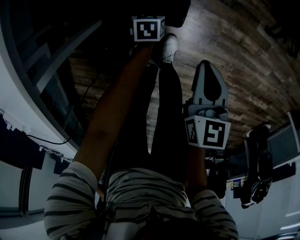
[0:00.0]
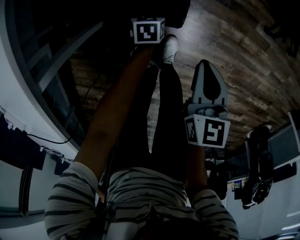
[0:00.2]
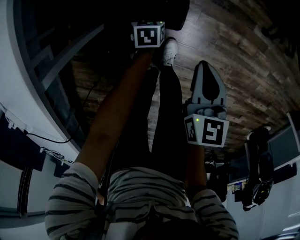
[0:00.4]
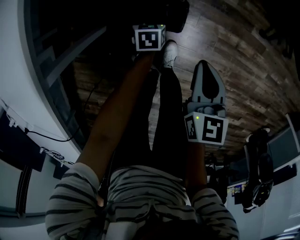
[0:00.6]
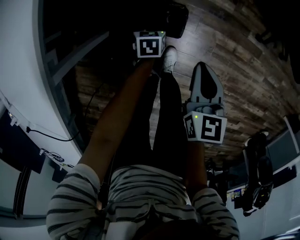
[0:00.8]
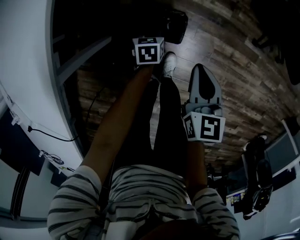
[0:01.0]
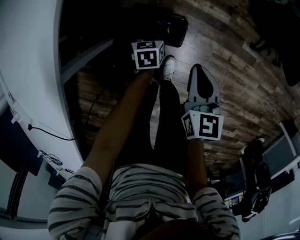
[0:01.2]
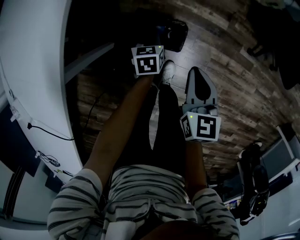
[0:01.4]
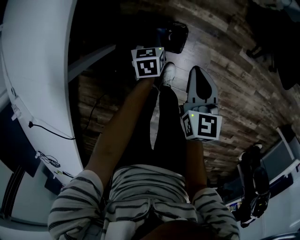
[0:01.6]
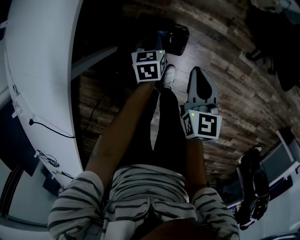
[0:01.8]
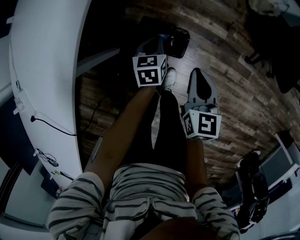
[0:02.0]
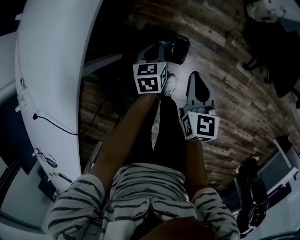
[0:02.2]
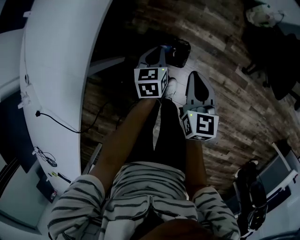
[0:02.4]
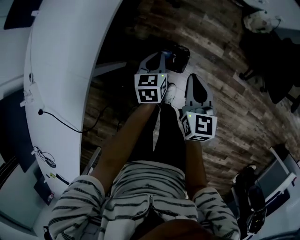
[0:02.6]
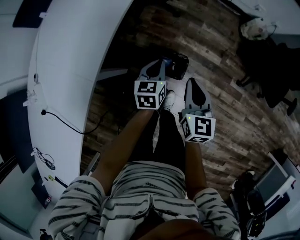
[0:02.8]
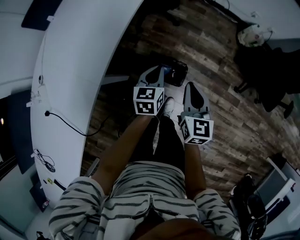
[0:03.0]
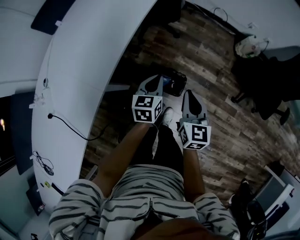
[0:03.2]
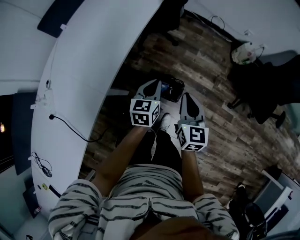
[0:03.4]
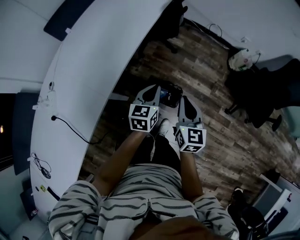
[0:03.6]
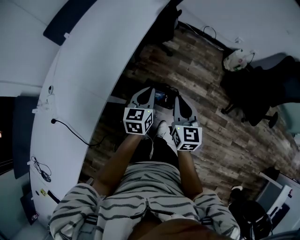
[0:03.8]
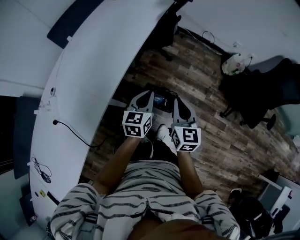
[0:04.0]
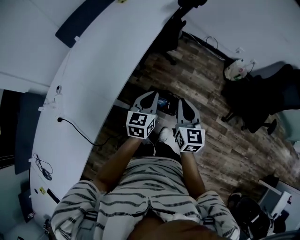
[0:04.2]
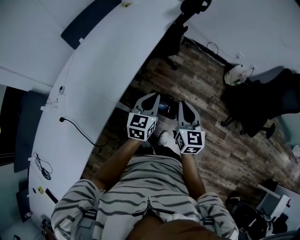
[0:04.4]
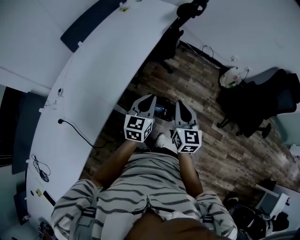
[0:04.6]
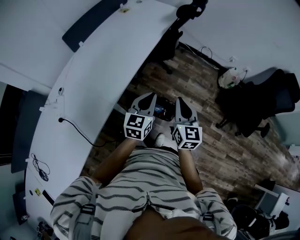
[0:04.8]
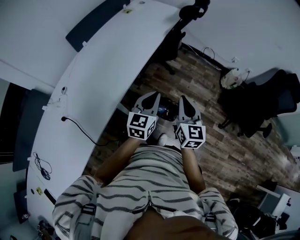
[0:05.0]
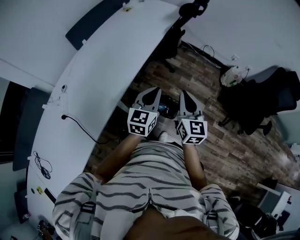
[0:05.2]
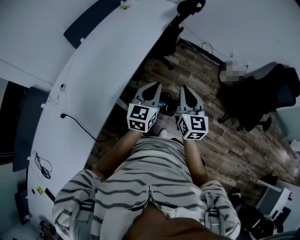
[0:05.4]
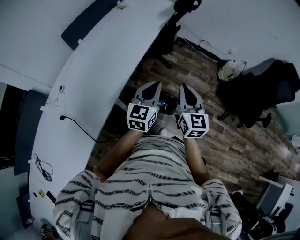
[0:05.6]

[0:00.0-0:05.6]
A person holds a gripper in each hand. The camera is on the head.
0:00.0 to 0:01.4: The left gripper shifts some 20 cm upward, and closes. Meanwhile the right gripper shifts approximately 10 cm upward.
0:01.4 to 0:02.8: The right gripper goes some 10 cm upward. Meanwhile the left gripper heads upward, covering roughly 20 cm.
0:02.8 to 0:04.2: The grippers both shift upward by roughly 20 cm.
0:04.2 to 0:05.6: The two grippers go some 10 cm upward.

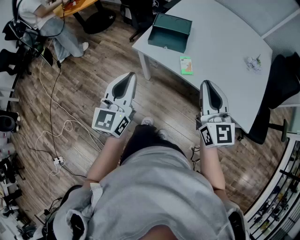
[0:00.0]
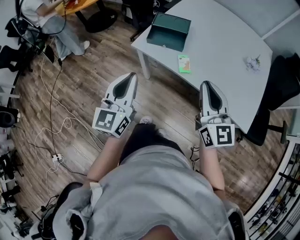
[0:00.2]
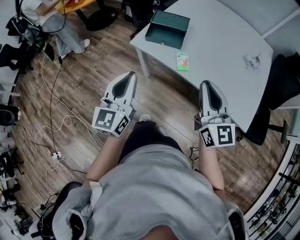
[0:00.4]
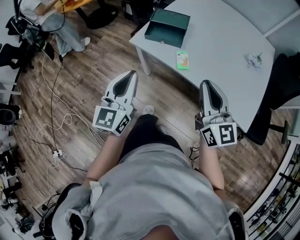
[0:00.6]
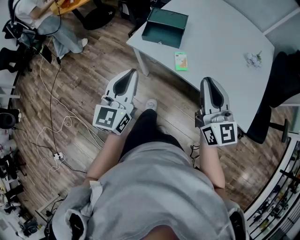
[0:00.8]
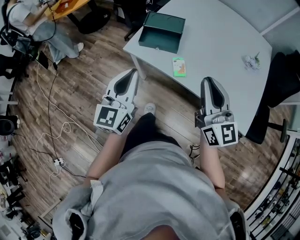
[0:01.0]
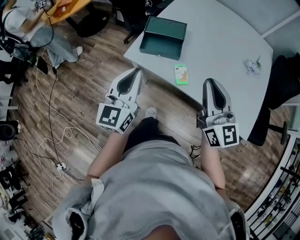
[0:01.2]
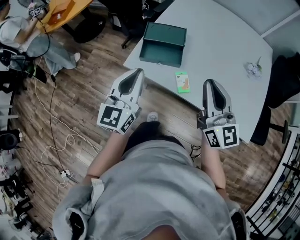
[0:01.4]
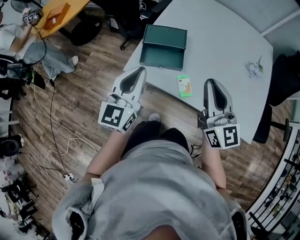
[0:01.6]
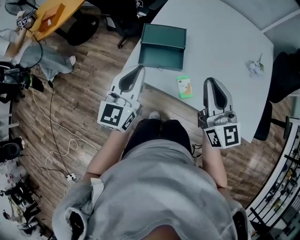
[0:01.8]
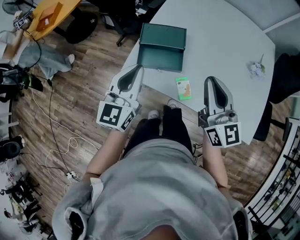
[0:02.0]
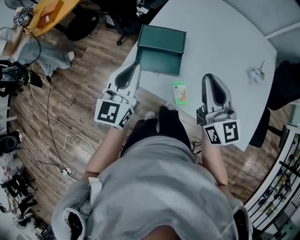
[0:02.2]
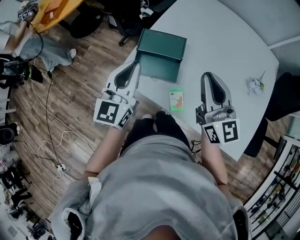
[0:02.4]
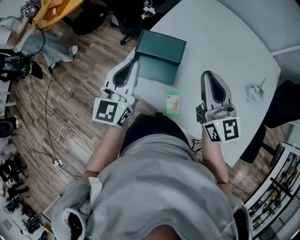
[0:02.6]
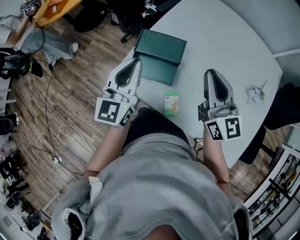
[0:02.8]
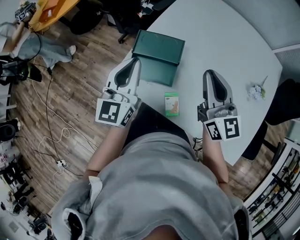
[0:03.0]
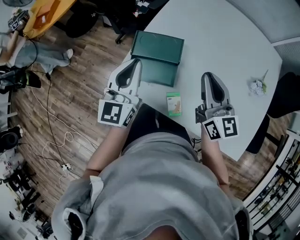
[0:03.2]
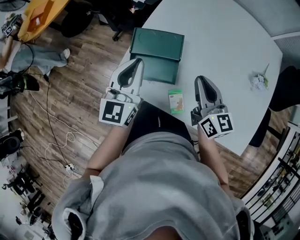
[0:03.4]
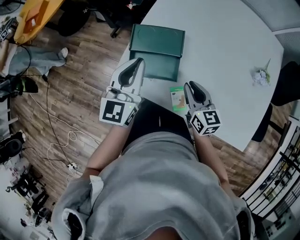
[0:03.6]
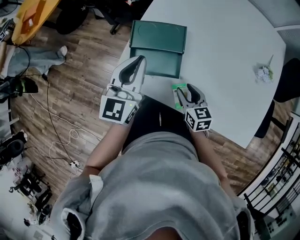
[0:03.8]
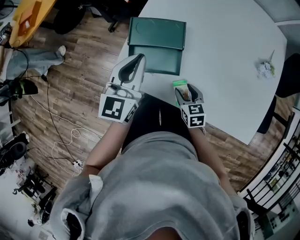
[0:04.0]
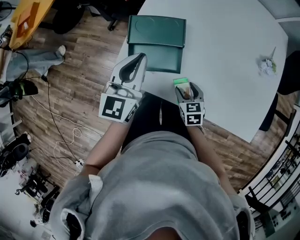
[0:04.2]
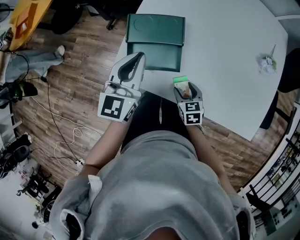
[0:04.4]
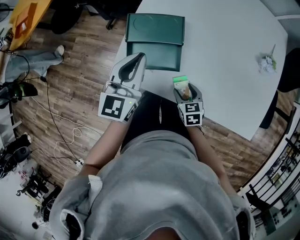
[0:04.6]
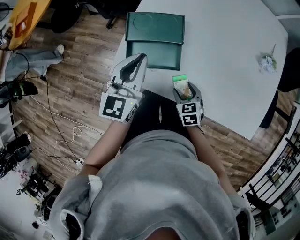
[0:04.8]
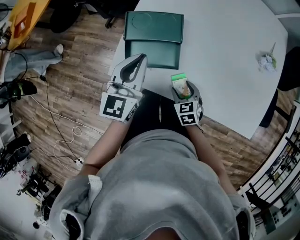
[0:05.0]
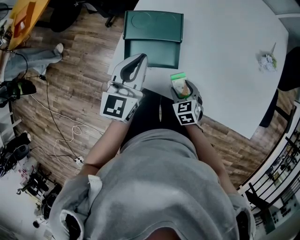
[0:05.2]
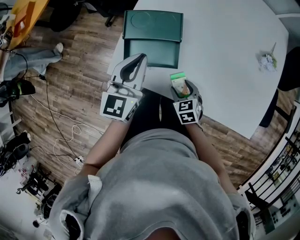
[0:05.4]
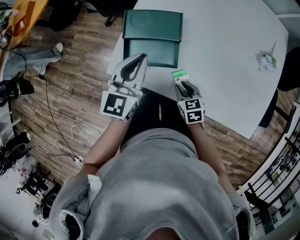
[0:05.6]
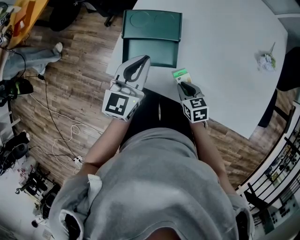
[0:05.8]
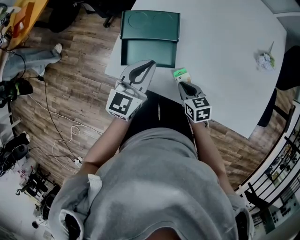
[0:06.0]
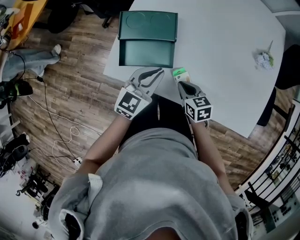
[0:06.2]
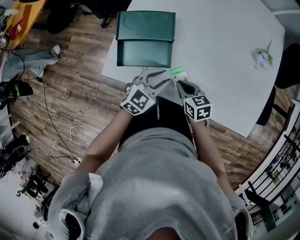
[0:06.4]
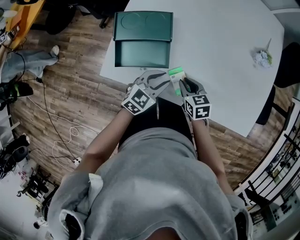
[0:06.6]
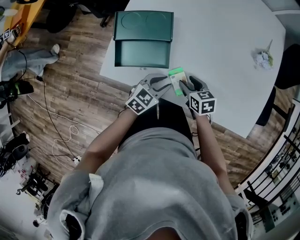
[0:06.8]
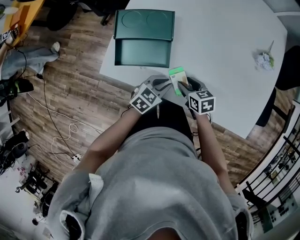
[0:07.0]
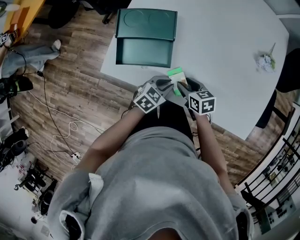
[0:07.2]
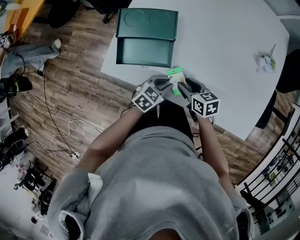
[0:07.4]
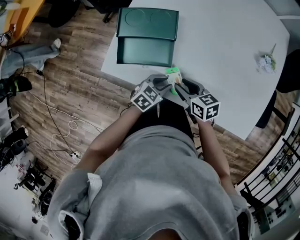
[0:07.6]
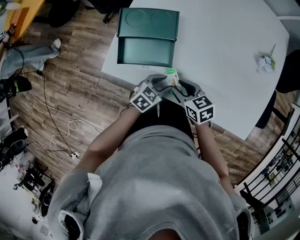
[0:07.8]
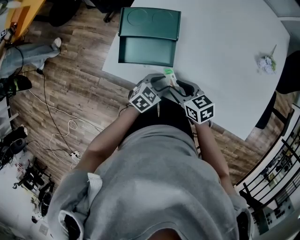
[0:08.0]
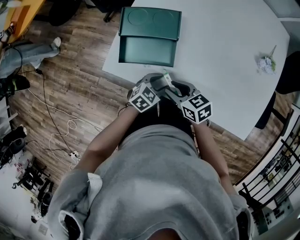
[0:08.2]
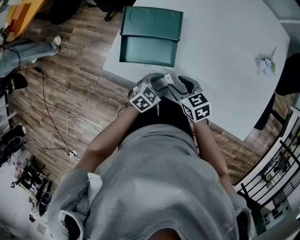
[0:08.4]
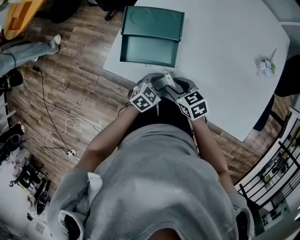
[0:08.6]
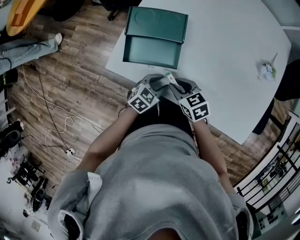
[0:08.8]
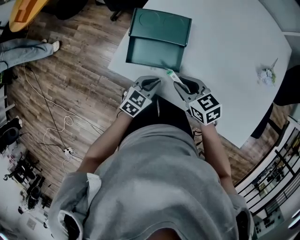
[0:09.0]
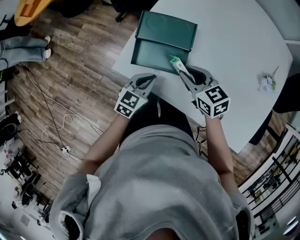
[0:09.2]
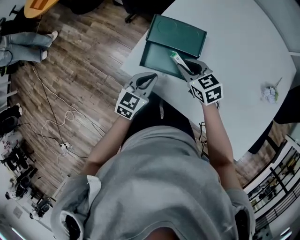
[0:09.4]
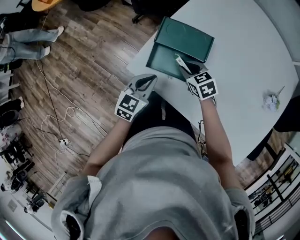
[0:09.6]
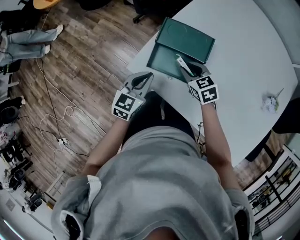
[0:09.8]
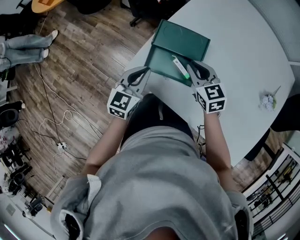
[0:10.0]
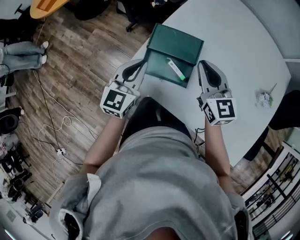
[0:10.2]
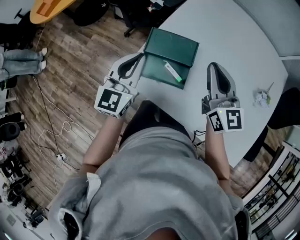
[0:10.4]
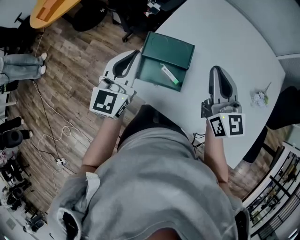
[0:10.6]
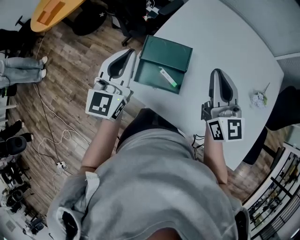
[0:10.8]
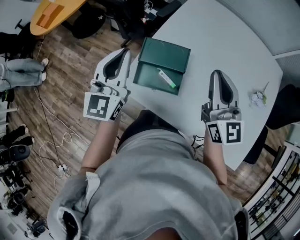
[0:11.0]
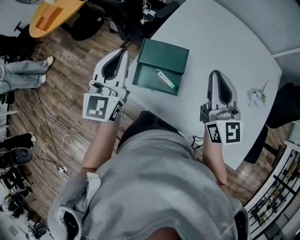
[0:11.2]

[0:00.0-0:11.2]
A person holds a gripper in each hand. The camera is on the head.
0:00.0 to 0:01.6: Both grippers move forward, some 20 cm.
0:01.6 to 0:03.2: The grippers both shift forward by roughly 20 cm.
0:03.2 to 0:04.8: The left gripper goes approximately 10 cm downward. The right gripper moves downward, roughly 30 cm, points its fingers approximately 50 degrees further downward, and opens.
0:04.8 to 0:06.4: The right gripper closes its fingers. Meanwhile the left gripper moves downward, to the right and backward, approximately 20 cm, changes its angle by about 40 degrees, and opens up.
0:06.4 to 0:08.0: The left gripper goes some 10 cm downward, and turns by some 20 degrees. The right gripper opens.
0:08.0 to 0:09.6: The left gripper shifts by some 20 cm, turns by approximately 40 degrees, and closes up. The right gripper goes upward and returns, approximately 10 cm each way, and changes its angle by some 30 degrees.
0:09.6 to 0:11.2: The right gripper heads upward and to the right, covering about 35 cm, and angles its fingers upward, by roughly 50 degrees. The left gripper heads upward, covering roughly 30 cm, and points its fingers roughly 30 degrees further upward.

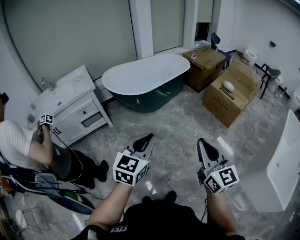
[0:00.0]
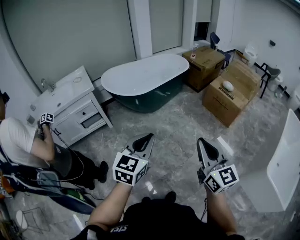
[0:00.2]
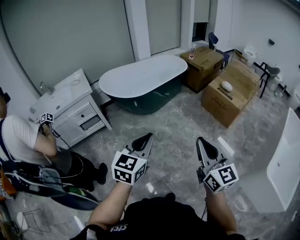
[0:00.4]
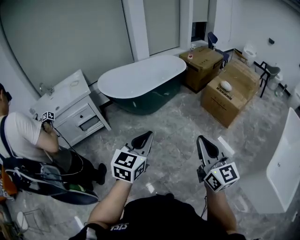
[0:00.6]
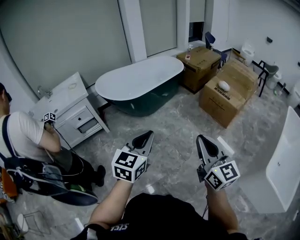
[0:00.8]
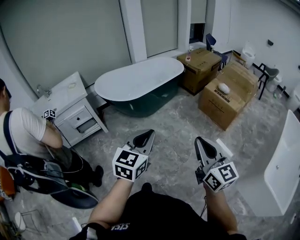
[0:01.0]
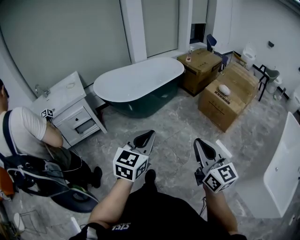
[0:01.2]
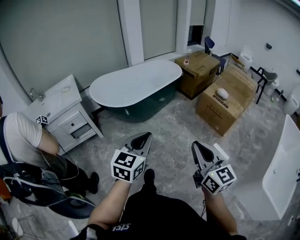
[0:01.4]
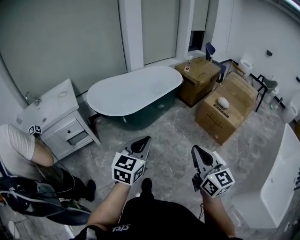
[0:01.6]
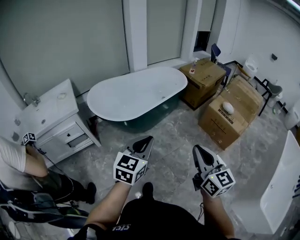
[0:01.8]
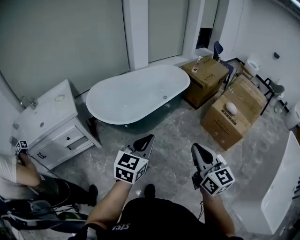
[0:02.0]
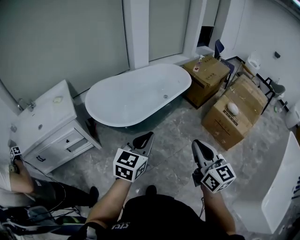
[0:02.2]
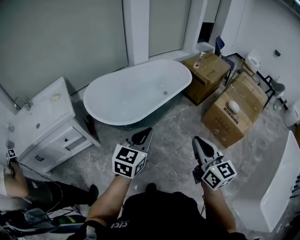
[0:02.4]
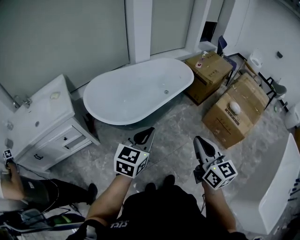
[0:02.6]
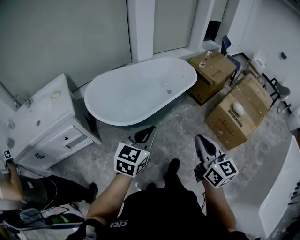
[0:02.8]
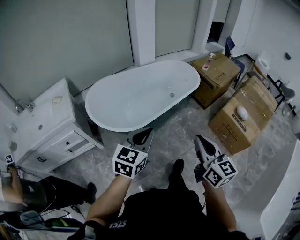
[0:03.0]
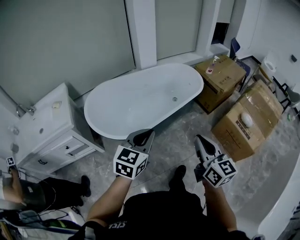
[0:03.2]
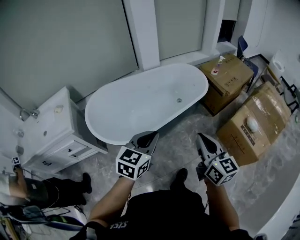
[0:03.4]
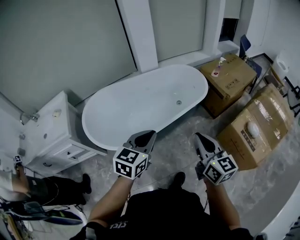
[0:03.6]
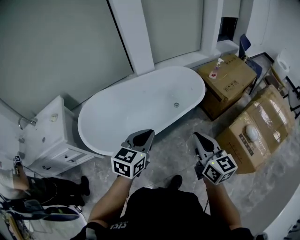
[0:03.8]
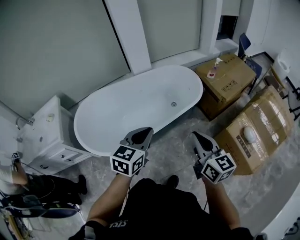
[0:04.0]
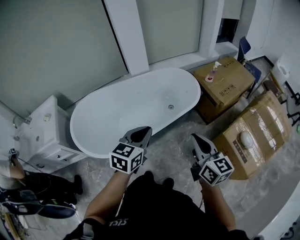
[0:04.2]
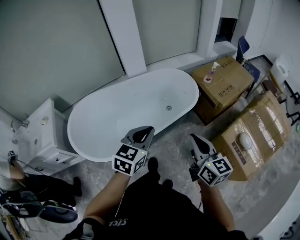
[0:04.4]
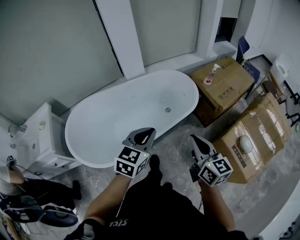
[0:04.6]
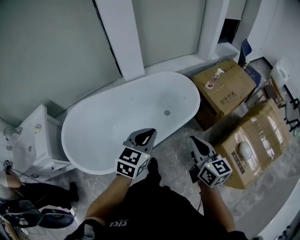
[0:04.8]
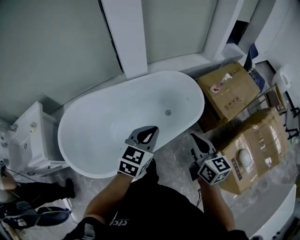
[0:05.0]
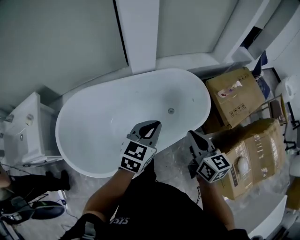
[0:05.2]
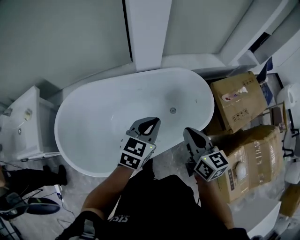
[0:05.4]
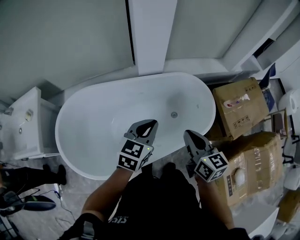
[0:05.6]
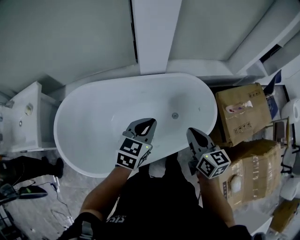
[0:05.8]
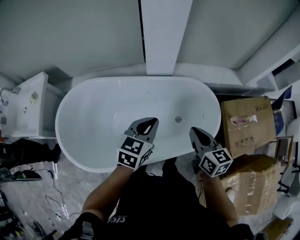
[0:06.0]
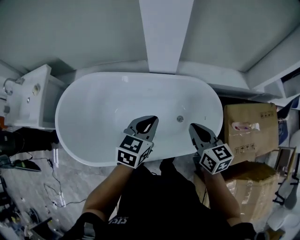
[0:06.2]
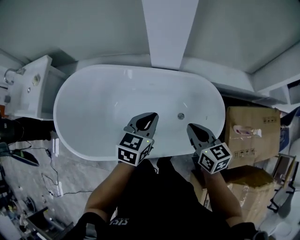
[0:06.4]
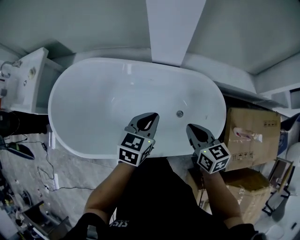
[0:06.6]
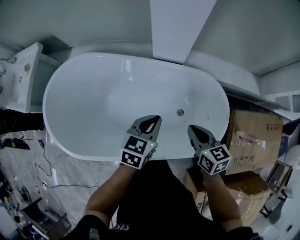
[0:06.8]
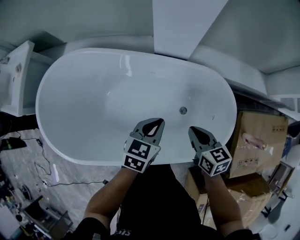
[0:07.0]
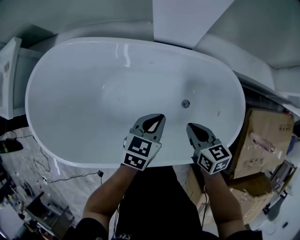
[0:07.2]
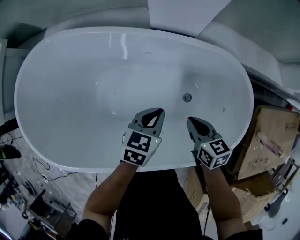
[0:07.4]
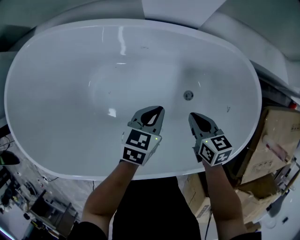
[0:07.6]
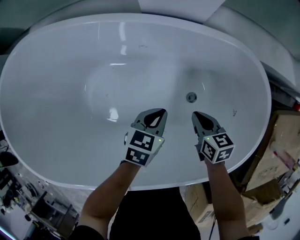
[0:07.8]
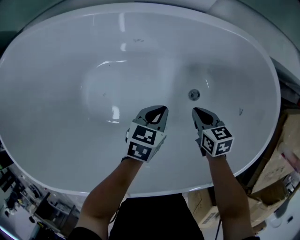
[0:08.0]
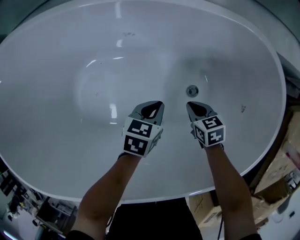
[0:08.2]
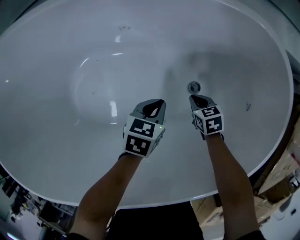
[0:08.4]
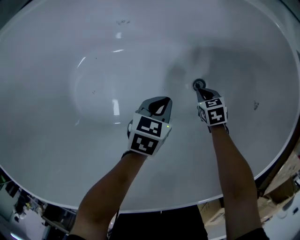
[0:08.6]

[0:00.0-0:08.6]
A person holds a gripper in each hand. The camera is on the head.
0:00.0 to 0:01.4: Both grippers travel together forward and to the right, about 15 cm.
0:01.4 to 0:02.8: Both grippers travel together forward, some 35 cm.
0:02.8 to 0:04.4: The two grippers travel together, forward and to the right, roughly 50 cm.
0:04.4 to 0:05.8: Both grippers travel together forward, some 35 cm. The right gripper swivels some 20 degrees.
0:05.8 to 0:07.2: The grippers both shift downward and forward by some 35 cm. The right gripper swivels roughly 30 degrees. Meanwhile the left gripper swivels some 20 degrees.
0:07.2 to 0:08.6: Both grippers travel together downward, about 50 cm. The right gripper turns by about 30 degrees.
